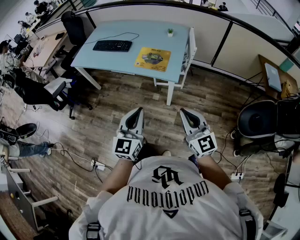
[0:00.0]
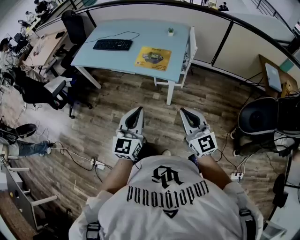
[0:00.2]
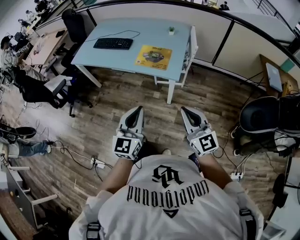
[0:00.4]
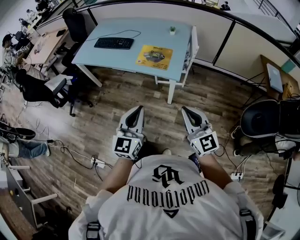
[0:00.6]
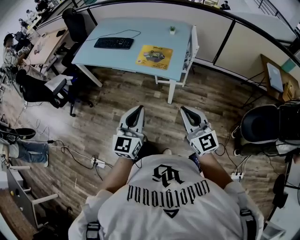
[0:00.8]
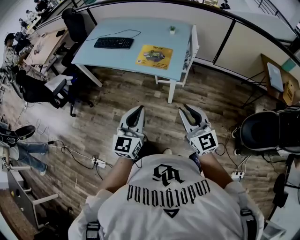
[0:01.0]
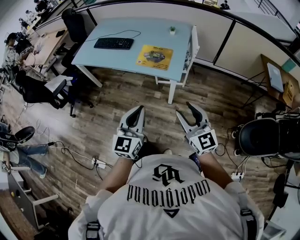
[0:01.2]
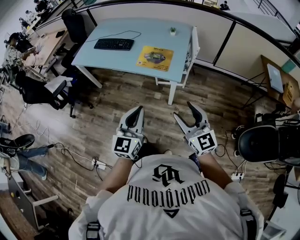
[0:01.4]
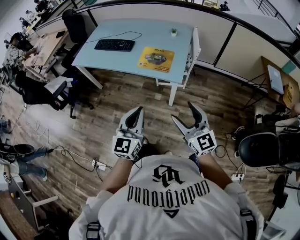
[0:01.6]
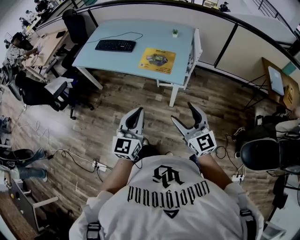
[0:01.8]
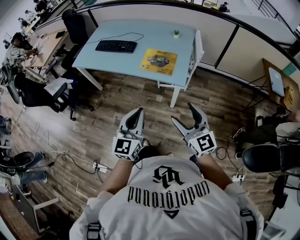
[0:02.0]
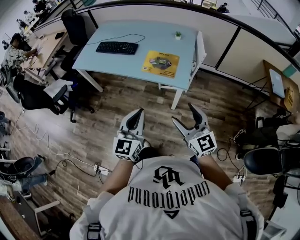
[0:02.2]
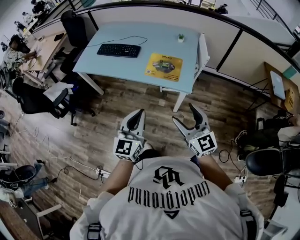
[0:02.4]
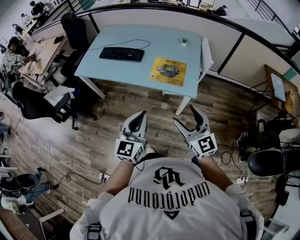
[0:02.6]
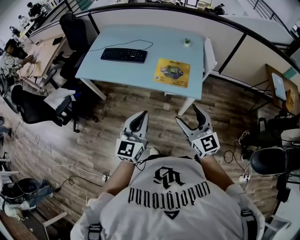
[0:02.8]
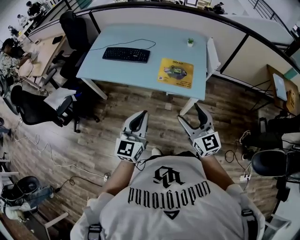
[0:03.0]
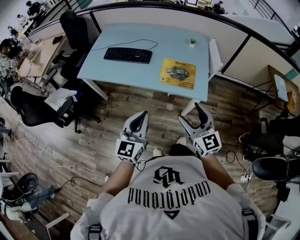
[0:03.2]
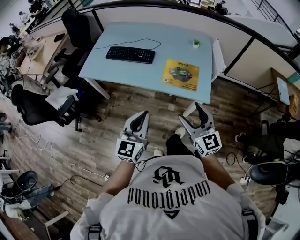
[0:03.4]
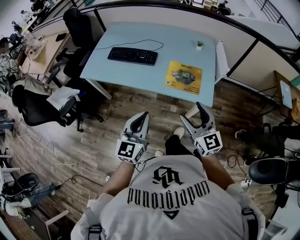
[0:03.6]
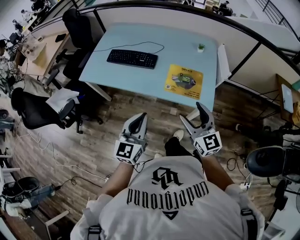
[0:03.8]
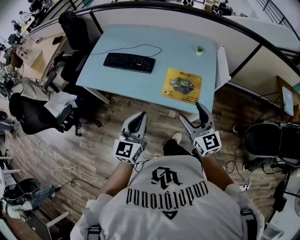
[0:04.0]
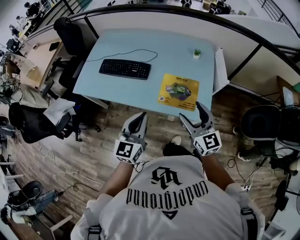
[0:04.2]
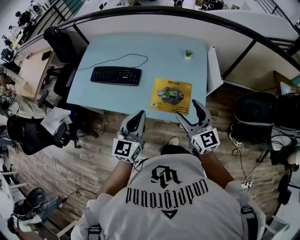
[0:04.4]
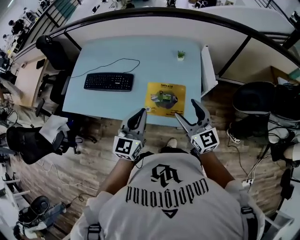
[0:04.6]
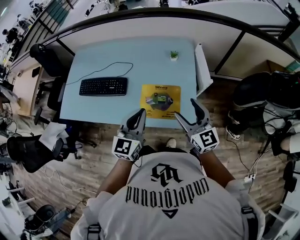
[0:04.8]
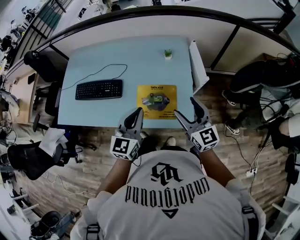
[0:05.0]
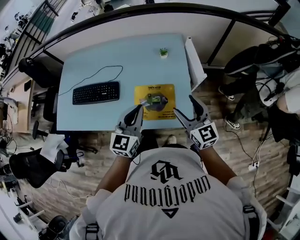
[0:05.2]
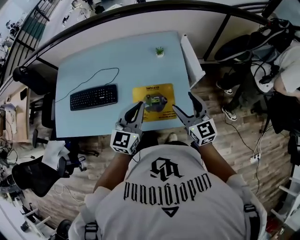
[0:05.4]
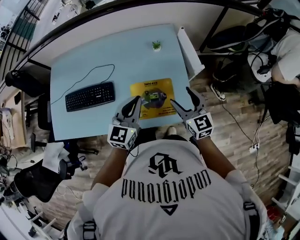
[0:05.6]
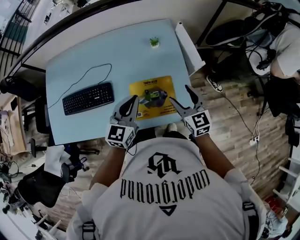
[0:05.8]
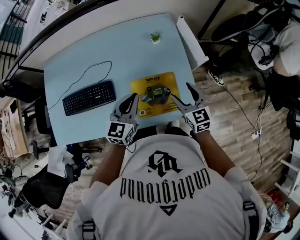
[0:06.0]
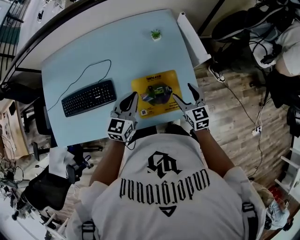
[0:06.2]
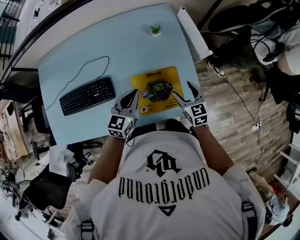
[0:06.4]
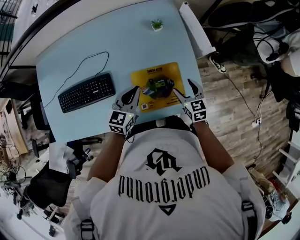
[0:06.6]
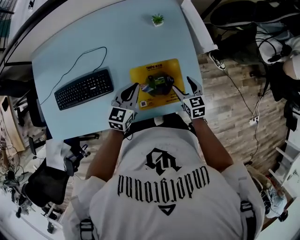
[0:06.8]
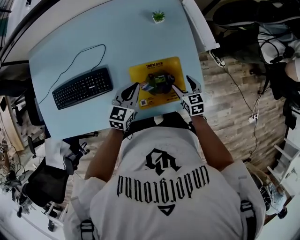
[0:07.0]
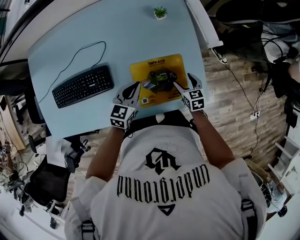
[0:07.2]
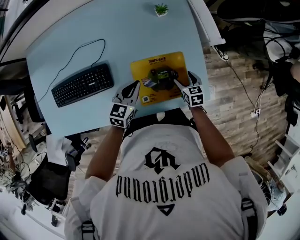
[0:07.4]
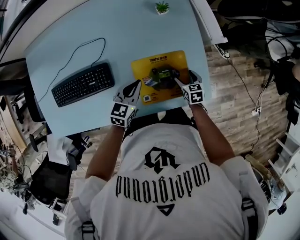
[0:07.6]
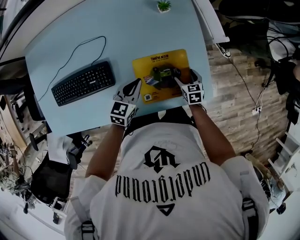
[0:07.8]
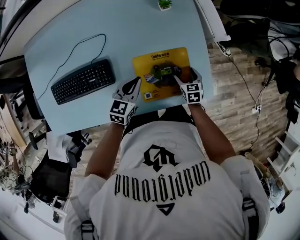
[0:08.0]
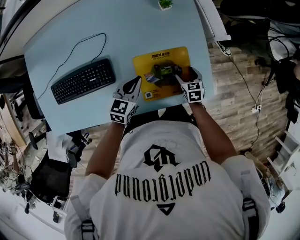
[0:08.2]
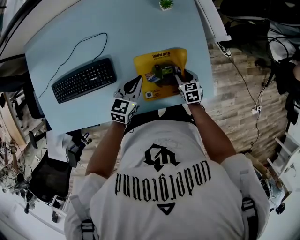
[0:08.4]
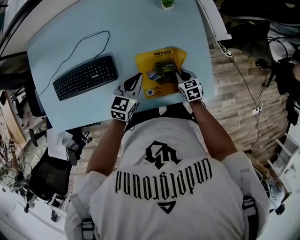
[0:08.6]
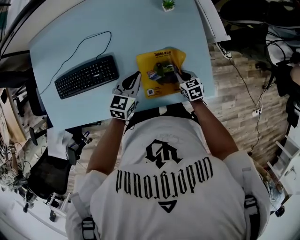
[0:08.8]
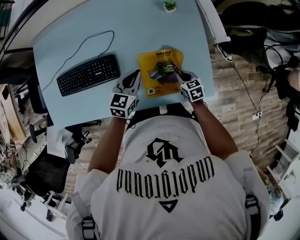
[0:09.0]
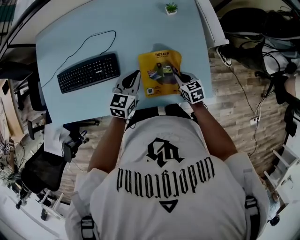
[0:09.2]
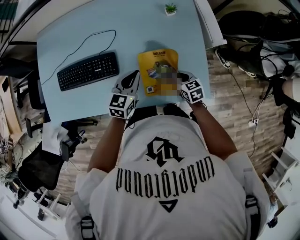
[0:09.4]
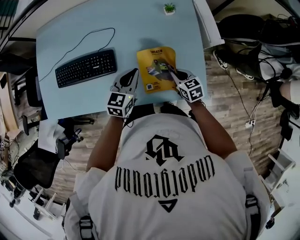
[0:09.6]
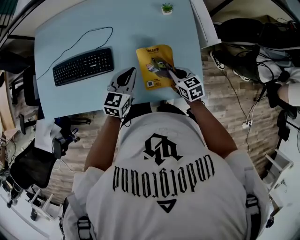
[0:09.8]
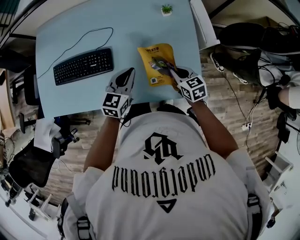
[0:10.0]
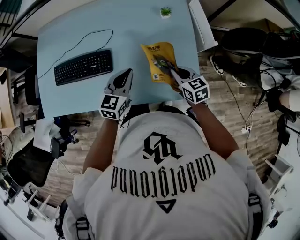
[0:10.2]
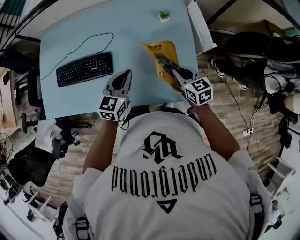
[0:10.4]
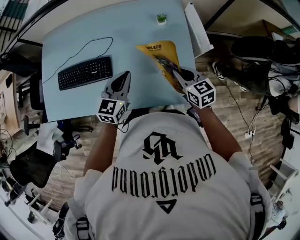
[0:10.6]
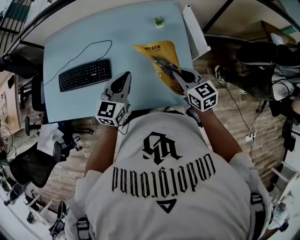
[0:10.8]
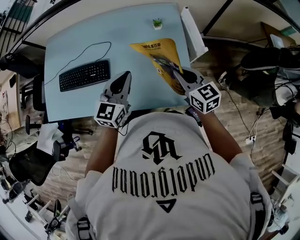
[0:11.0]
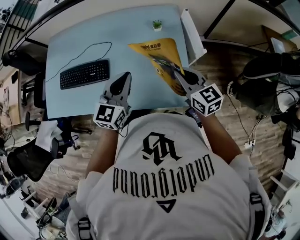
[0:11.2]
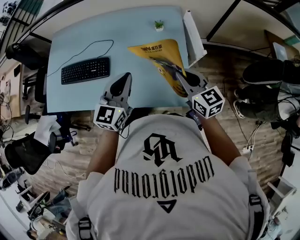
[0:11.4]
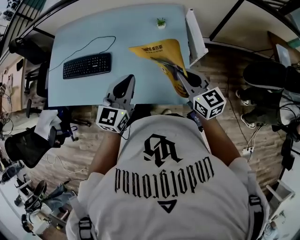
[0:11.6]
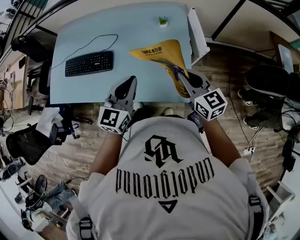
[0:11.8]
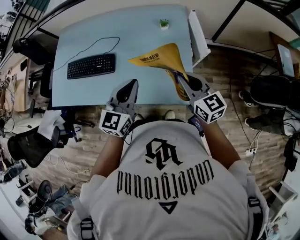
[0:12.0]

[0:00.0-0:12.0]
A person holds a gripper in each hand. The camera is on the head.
0:00.0 to 0:01.6: The right gripper opens its fingers.
0:01.6 to 0:03.0: Both grippers move to the left and forward, some 25 cm.
0:03.0 to 0:04.4: The two grippers go about 25 cm forward.
0:04.4 to 0:06.0: The two grippers go approximately 25 cm forward and downward. The left gripper rotates approximately 30 degrees; the right gripper turns by about 30 degrees.
0:06.0 to 0:07.6: The left gripper moves downward, approximately 15 cm, and changes its angle by roughly 20 degrees. The right gripper travels downward by some 25 cm, and tilts its fingers approximately 30 degrees downward.
0:07.6 to 0:09.0: The right gripper is displaced to the left by roughly 5 cm, and closes up.
0:09.0 to 0:10.4: The left gripper moves upward, some 10 cm; the right gripper goes roughly 20 cm upward, and changes its angle by some 20 degrees.
0:10.4 to 0:12.0: The two grippers go roughly 20 cm upward, backward and to the right. The right gripper rotates roughly 20 degrees.

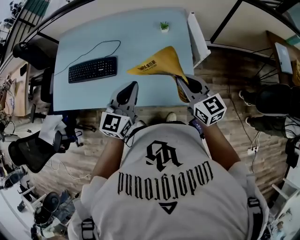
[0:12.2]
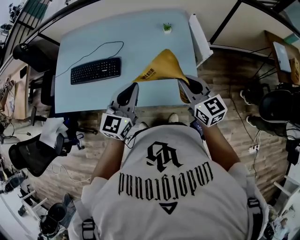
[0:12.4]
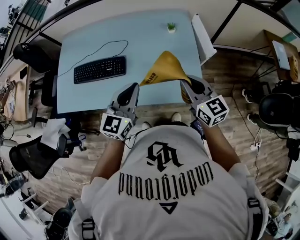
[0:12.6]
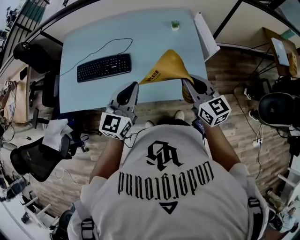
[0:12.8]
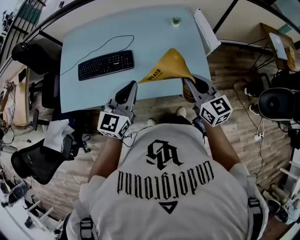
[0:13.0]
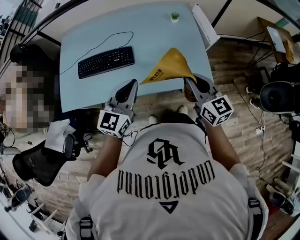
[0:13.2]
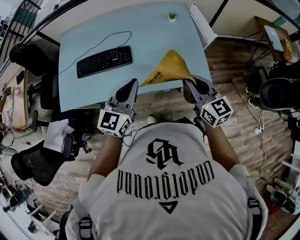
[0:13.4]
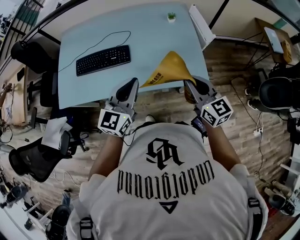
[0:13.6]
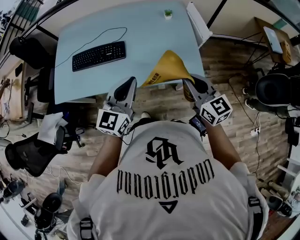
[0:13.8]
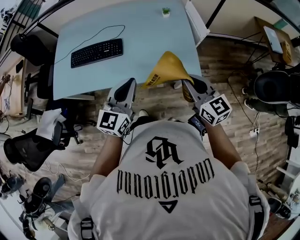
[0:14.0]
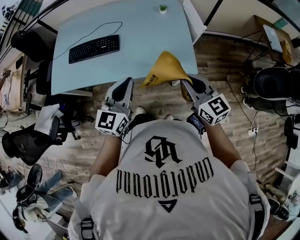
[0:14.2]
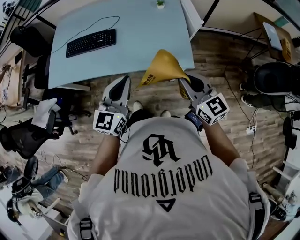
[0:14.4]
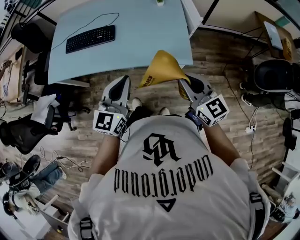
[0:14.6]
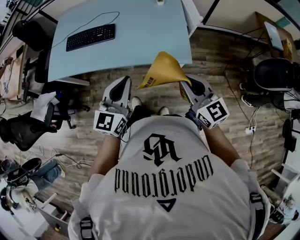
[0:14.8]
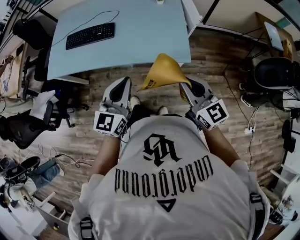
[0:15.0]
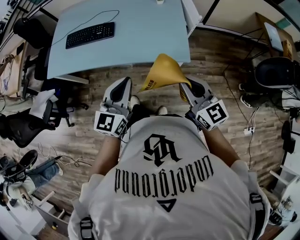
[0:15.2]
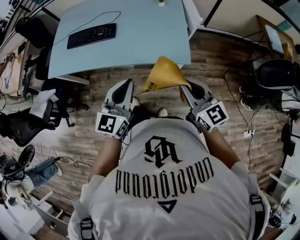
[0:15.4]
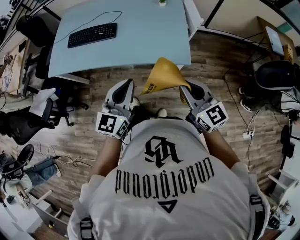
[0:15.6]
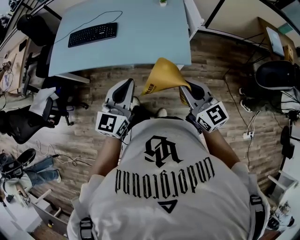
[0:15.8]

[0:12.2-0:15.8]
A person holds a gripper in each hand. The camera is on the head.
0:12.2 to 0:14.0: Both grippers move backward and to the left, approximately 20 cm.
0:14.0 to 0:15.8: Both grippers travel together backward and to the right, about 15 cm.

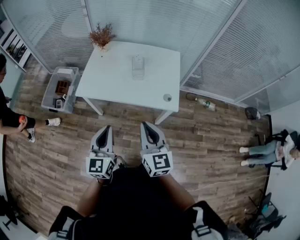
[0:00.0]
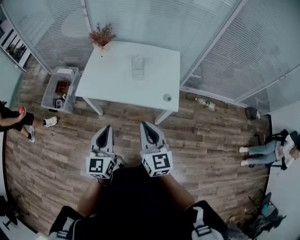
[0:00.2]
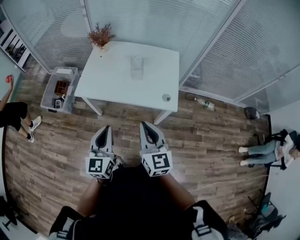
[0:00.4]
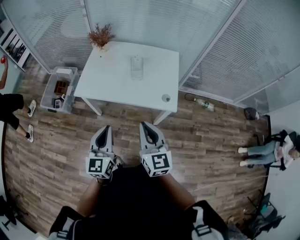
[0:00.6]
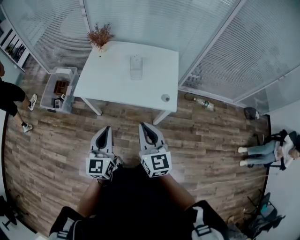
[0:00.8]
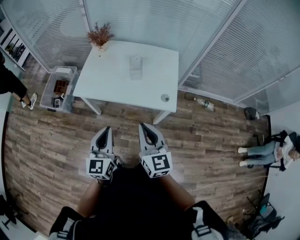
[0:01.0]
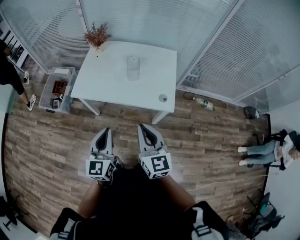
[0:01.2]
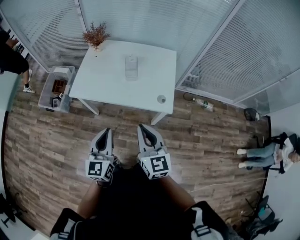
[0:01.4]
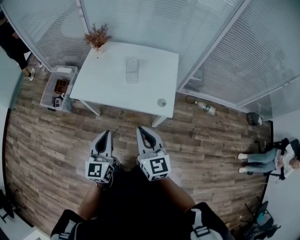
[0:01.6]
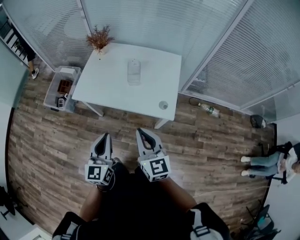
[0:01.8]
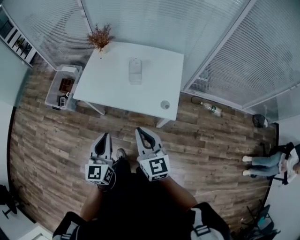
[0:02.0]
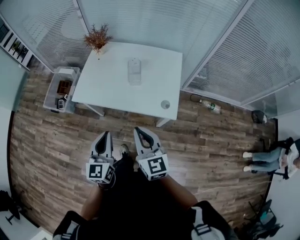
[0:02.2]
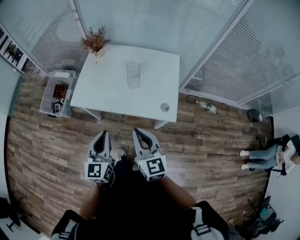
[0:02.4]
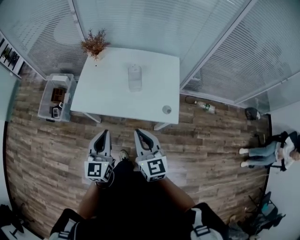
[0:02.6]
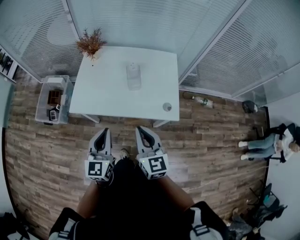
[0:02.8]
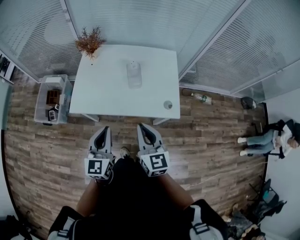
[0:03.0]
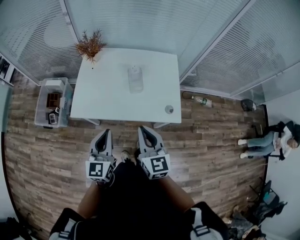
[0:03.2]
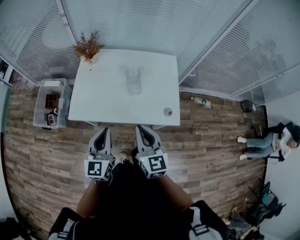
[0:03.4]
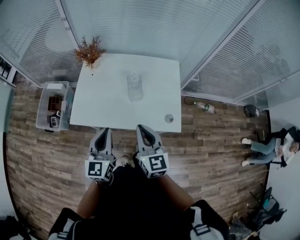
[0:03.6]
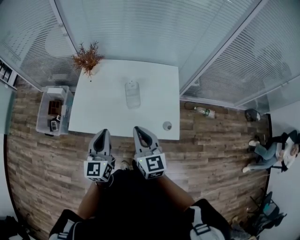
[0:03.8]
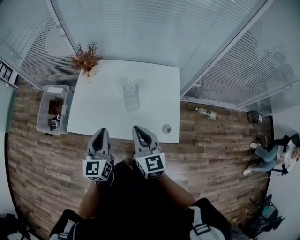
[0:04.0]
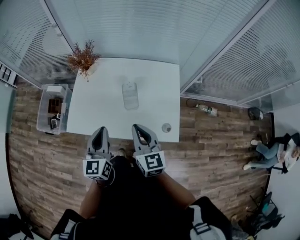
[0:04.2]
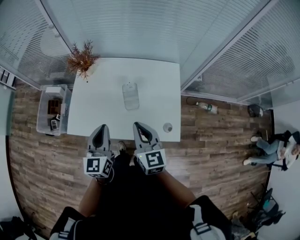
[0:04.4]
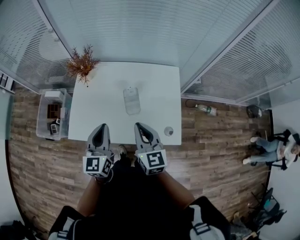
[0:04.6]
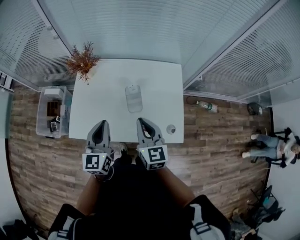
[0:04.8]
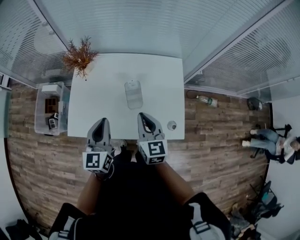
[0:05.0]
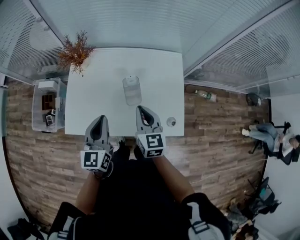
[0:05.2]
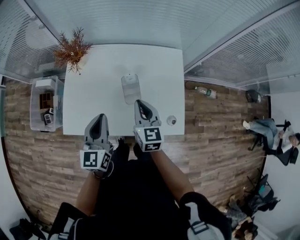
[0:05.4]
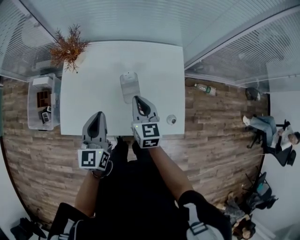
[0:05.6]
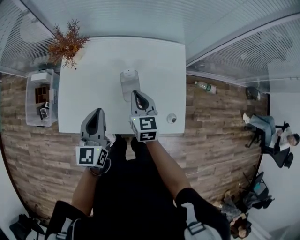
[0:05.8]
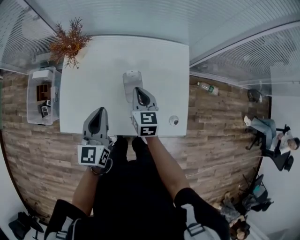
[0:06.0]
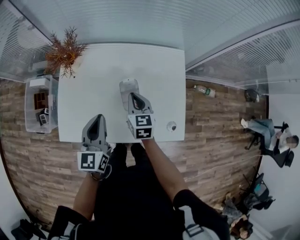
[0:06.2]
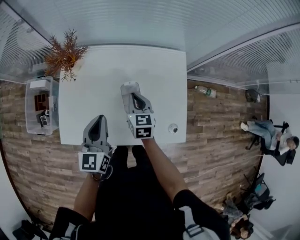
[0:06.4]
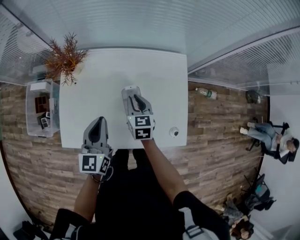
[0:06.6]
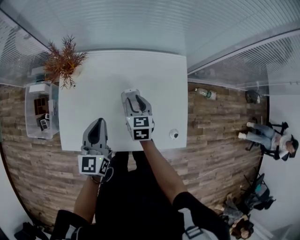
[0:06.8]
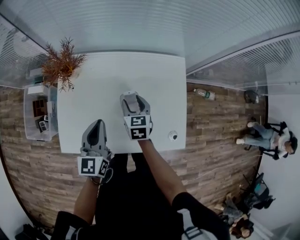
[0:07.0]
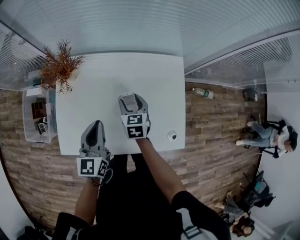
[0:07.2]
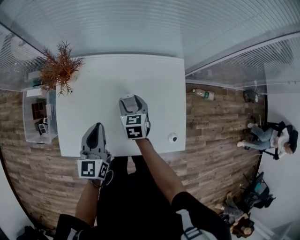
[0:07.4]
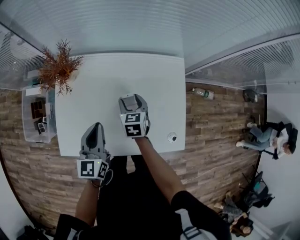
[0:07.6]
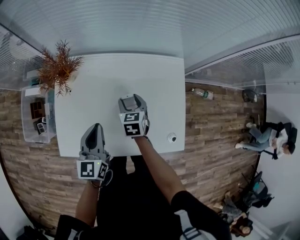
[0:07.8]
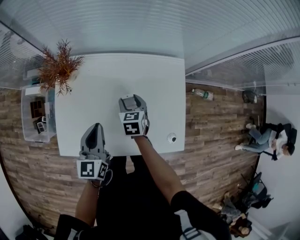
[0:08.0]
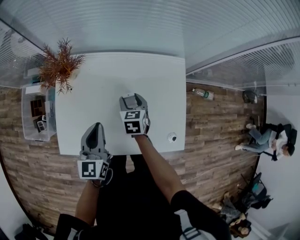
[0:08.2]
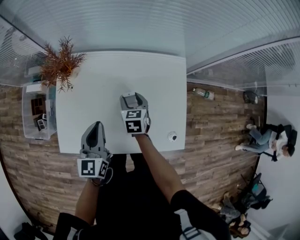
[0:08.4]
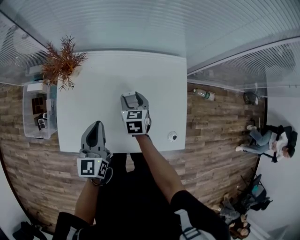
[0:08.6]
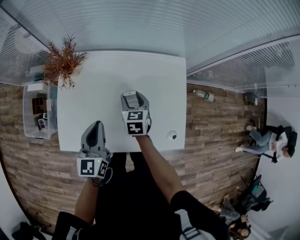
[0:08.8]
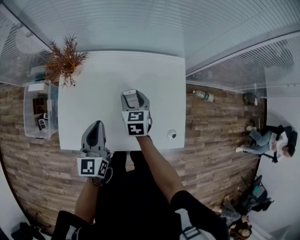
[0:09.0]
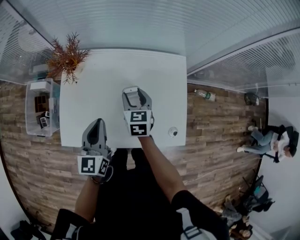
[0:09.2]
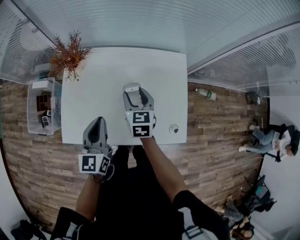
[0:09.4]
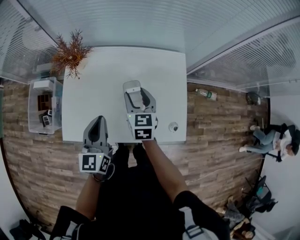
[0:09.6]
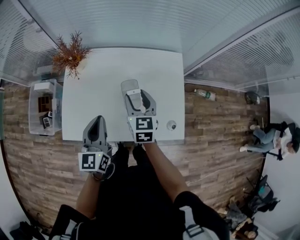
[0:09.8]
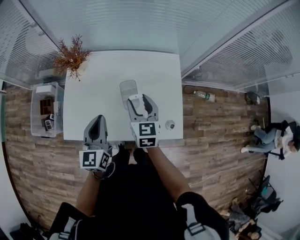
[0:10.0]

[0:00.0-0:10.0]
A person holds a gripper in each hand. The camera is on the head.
0:00.0 to 0:01.4: The left gripper heads to the right, covering approximately 5 cm.
0:01.4 to 0:02.8: Both grippers travel together forward and to the left, approximately 10 cm.
0:02.8 to 0:04.2: The grippers both shift forward by roughly 15 cm.
0:04.2 to 0:05.8: The left gripper moves forward and downward, some 15 cm; the right gripper travels forward and downward by approximately 20 cm.
0:05.8 to 0:07.2: The right gripper travels forward and downward by some 10 cm, and opens; the left gripper heads forward, covering some 5 cm.
0:07.2 to 0:08.6: The grippers make only small movements.
0:08.6 to 0:10.0: The right gripper moves upward and backward, approximately 20 cm, and turns by about 20 degrees, while the left gripper moves backward and upward, some 10 cm.
